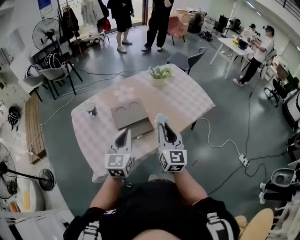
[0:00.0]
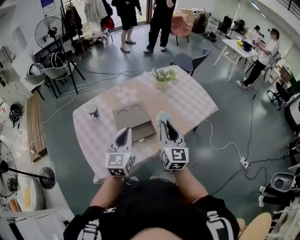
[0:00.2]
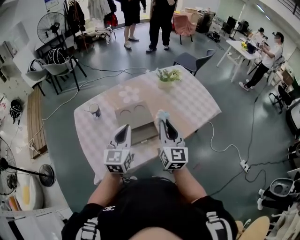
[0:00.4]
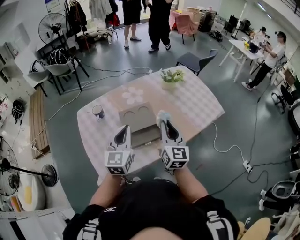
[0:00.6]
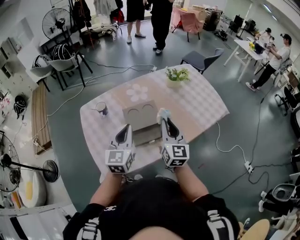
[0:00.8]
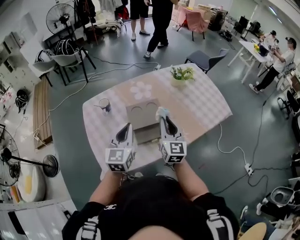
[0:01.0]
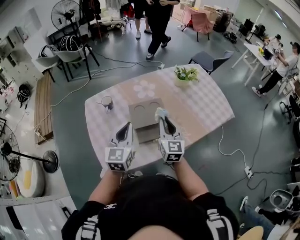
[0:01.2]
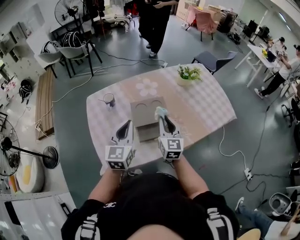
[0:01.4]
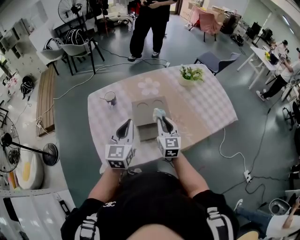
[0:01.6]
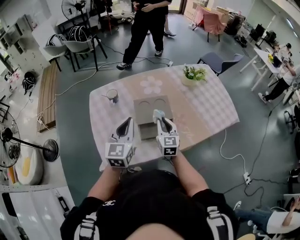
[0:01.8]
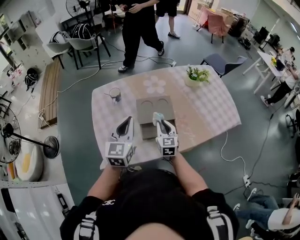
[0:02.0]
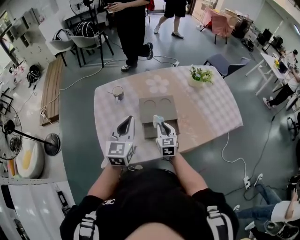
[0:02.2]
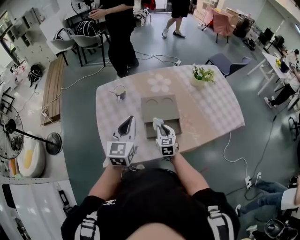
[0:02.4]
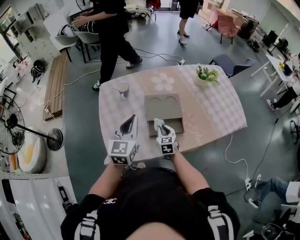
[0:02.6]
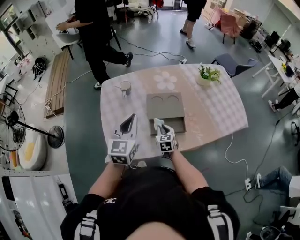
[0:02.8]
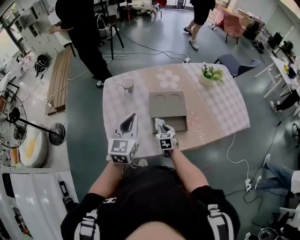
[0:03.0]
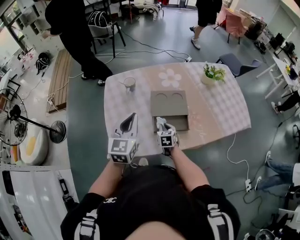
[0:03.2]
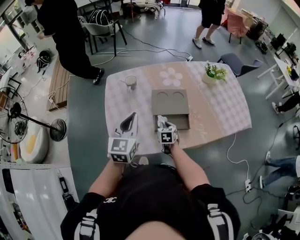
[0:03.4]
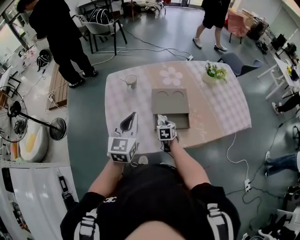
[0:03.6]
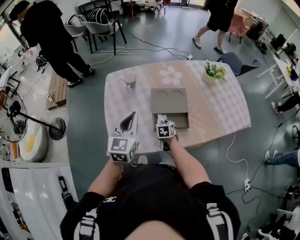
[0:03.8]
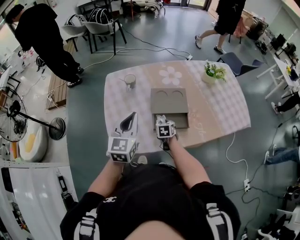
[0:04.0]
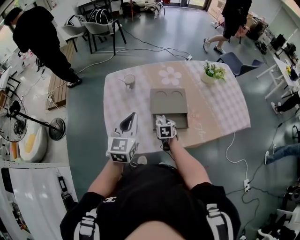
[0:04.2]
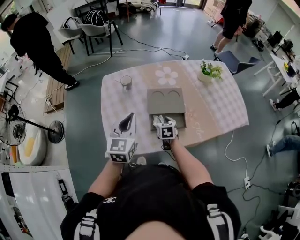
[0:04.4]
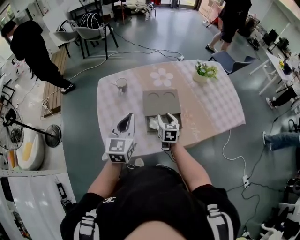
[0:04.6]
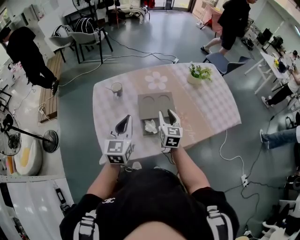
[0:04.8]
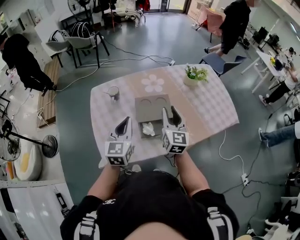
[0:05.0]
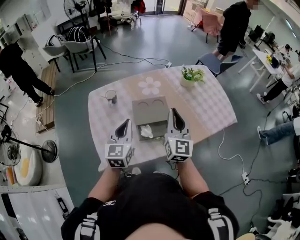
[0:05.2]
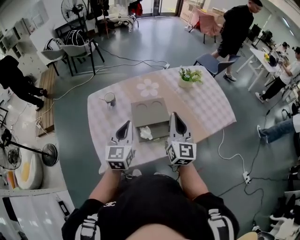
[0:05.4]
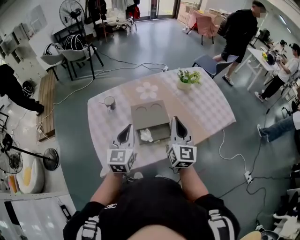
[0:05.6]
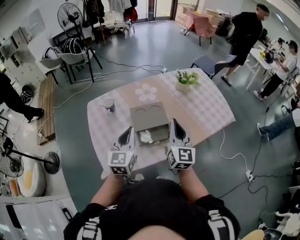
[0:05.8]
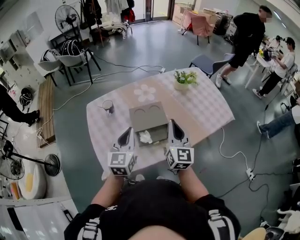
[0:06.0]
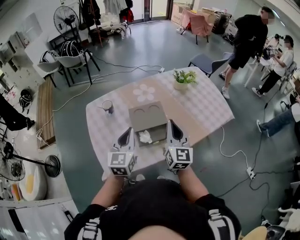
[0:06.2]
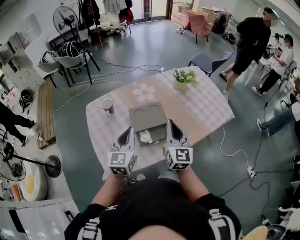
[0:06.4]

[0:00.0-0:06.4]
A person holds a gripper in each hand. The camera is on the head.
0:00.0 to 0:01.6: The left gripper travels to the left and forward by about 15 cm, while the right gripper heads forward, to the left and downward, covering about 20 cm.
0:01.6 to 0:03.2: The right gripper heads downward, covering roughly 20 cm, and angles its fingers downward, by roughly 30 degrees; the left gripper travels to the left by approximately 5 cm.
0:03.2 to 0:04.8: The right gripper goes approximately 20 cm upward, and rotates approximately 30 degrees.
0:04.8 to 0:06.4: The right gripper travels upward, backward and to the right by roughly 15 cm, rotates about 20 degrees, and closes its fingers; the left gripper shifts about 5 cm to the right.

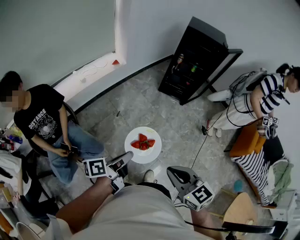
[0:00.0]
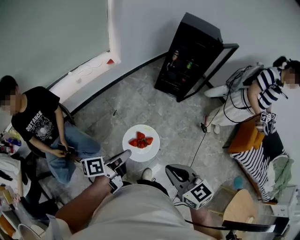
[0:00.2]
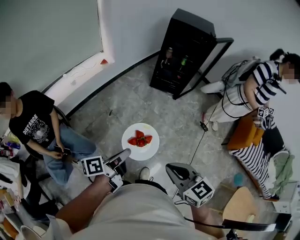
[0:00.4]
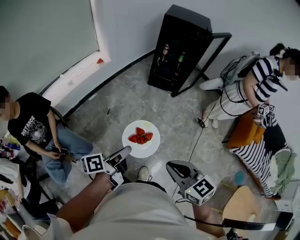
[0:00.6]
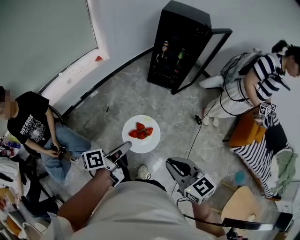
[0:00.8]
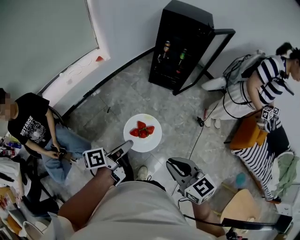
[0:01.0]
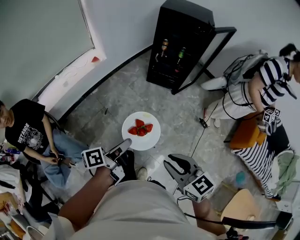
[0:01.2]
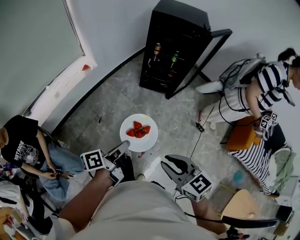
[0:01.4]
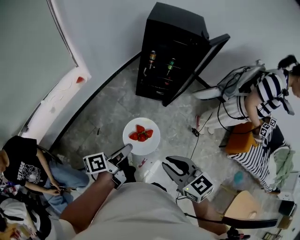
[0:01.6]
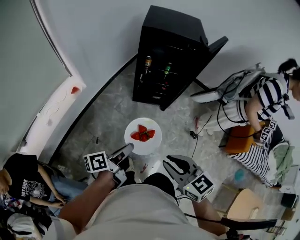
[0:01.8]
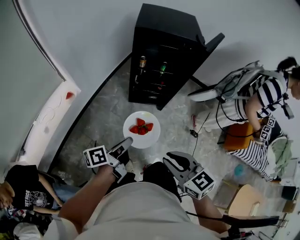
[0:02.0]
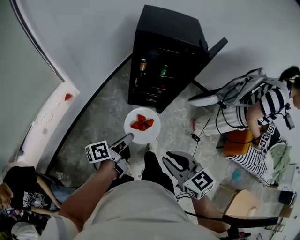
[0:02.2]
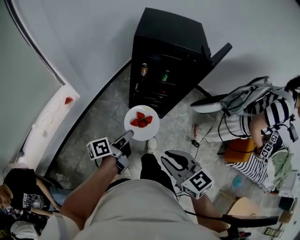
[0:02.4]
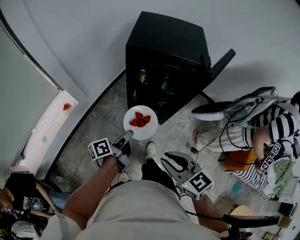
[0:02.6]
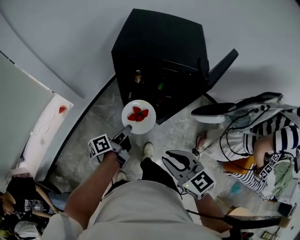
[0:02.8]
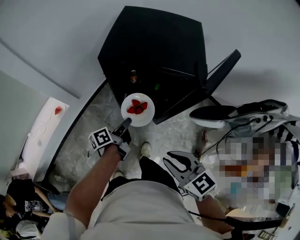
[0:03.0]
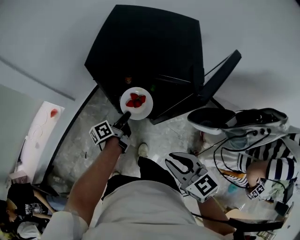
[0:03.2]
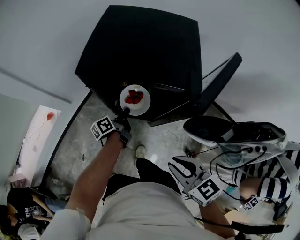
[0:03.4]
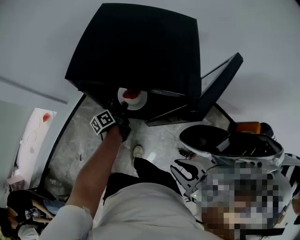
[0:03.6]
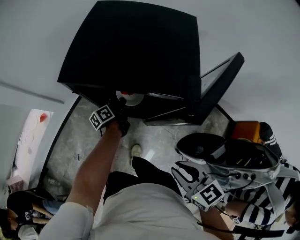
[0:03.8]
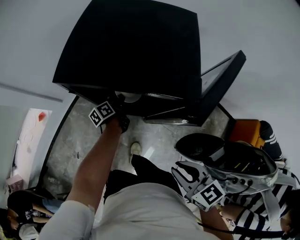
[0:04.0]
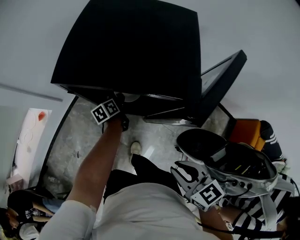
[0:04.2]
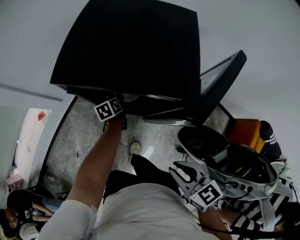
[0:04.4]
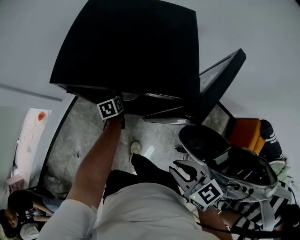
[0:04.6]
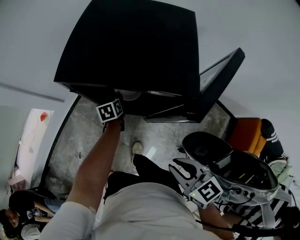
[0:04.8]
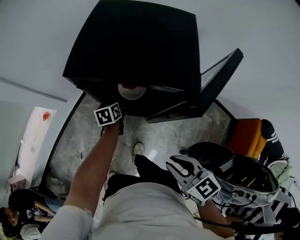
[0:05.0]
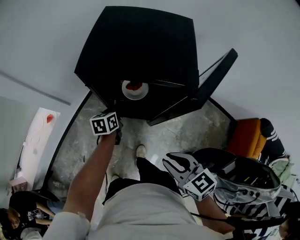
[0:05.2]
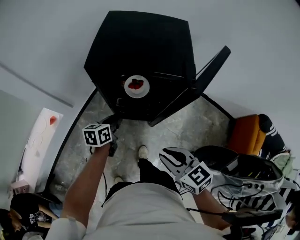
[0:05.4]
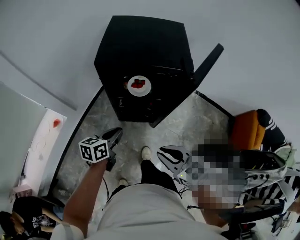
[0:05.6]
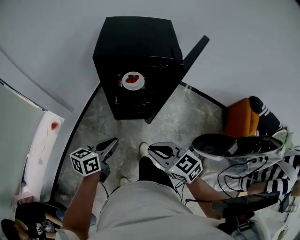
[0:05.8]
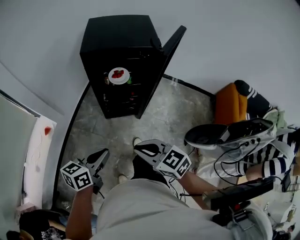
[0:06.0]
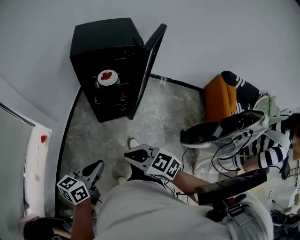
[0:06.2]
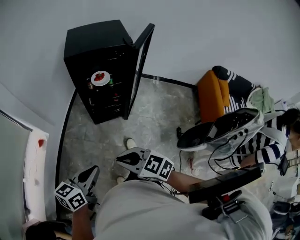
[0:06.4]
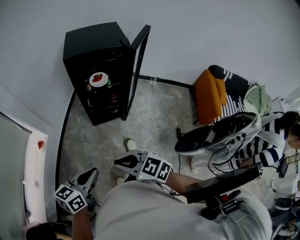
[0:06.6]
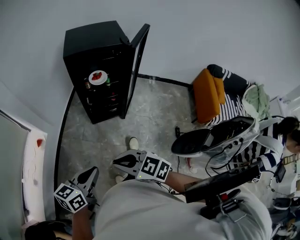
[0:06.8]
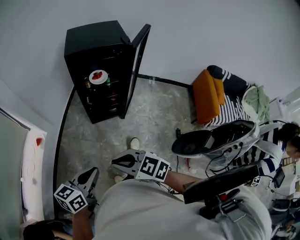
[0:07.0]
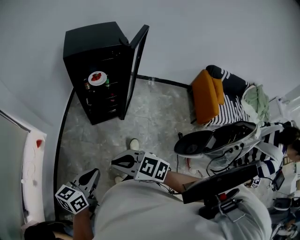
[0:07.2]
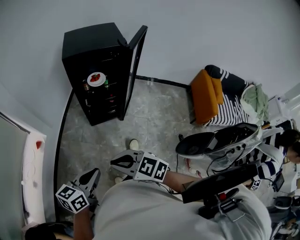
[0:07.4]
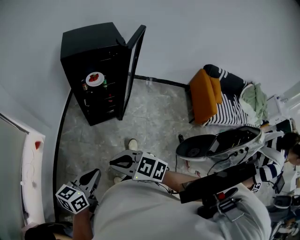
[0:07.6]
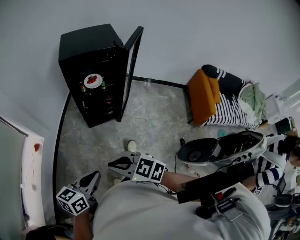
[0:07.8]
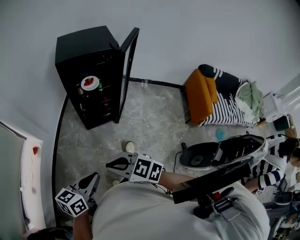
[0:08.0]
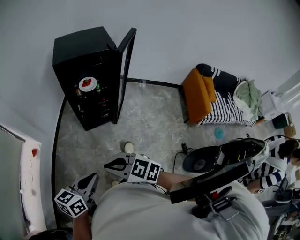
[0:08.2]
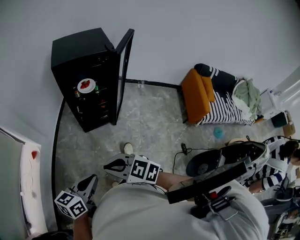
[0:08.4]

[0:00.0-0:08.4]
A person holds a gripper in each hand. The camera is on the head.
0:00.0 to 0:01.4: The two grippers go about 30 cm forward and to the right.
0:01.4 to 0:02.8: The pair of grippers is taken forward, roughly 50 cm.
0:02.8 to 0:04.2: The right gripper is displaced to the right and forward by some 35 cm. Meanwhile the left gripper shifts about 50 cm forward and to the right, and turns by some 30 degrees.
0:04.2 to 0:05.6: The left gripper changes place by some 15 cm, and turns by roughly 50 degrees. Meanwhile the right gripper moves about 30 cm.
0:05.6 to 0:07.0: The right gripper moves about 10 cm; the left gripper changes place by about 20 cm.
0:07.0 to 0:08.4: The right gripper changes place by about 5 cm.

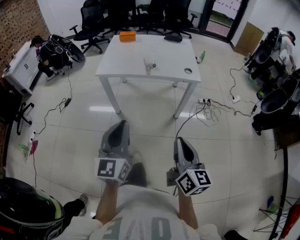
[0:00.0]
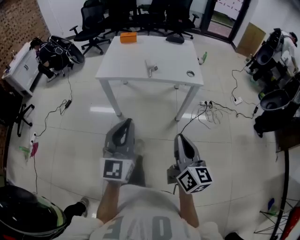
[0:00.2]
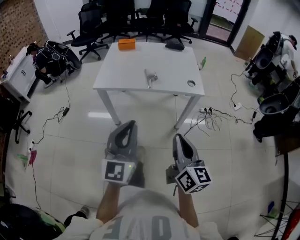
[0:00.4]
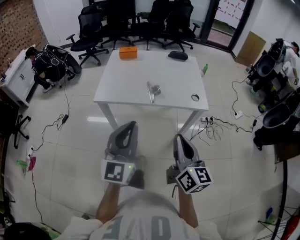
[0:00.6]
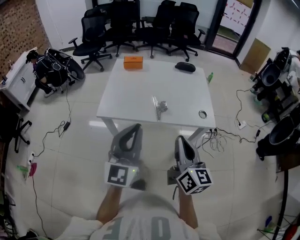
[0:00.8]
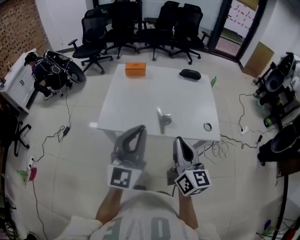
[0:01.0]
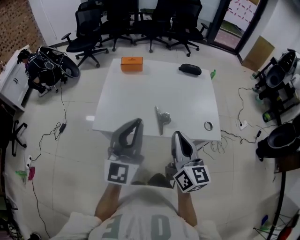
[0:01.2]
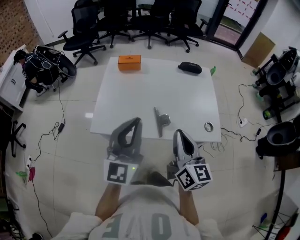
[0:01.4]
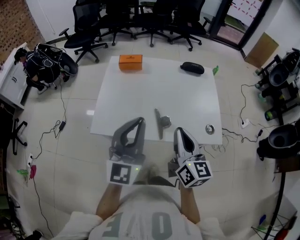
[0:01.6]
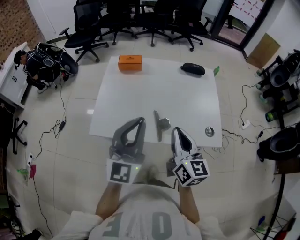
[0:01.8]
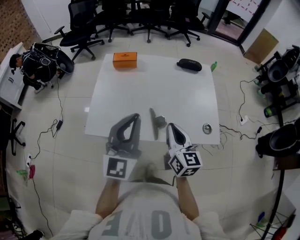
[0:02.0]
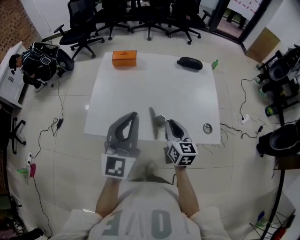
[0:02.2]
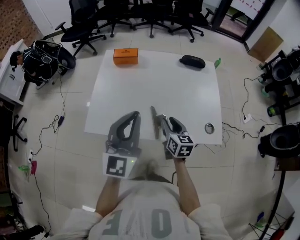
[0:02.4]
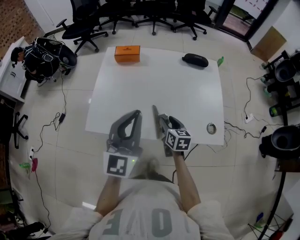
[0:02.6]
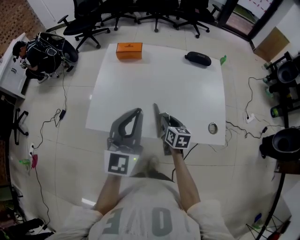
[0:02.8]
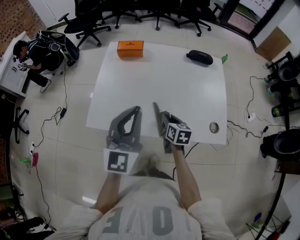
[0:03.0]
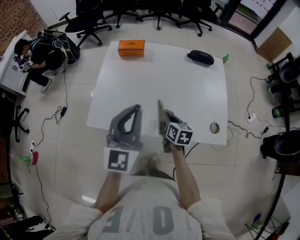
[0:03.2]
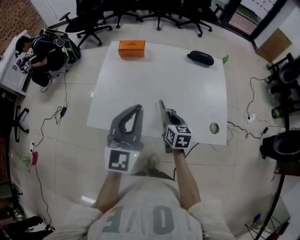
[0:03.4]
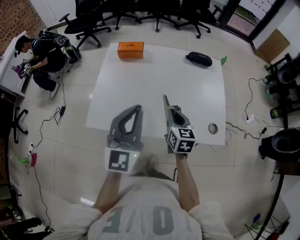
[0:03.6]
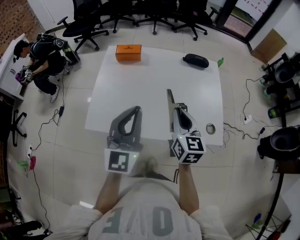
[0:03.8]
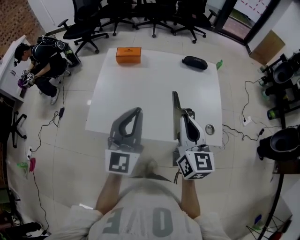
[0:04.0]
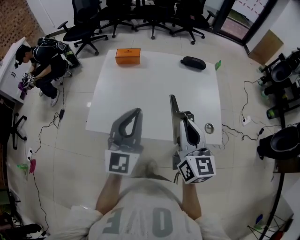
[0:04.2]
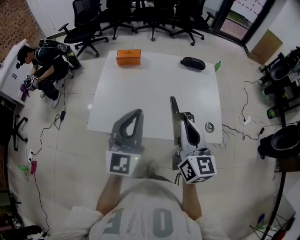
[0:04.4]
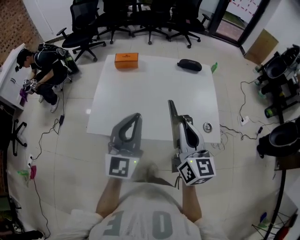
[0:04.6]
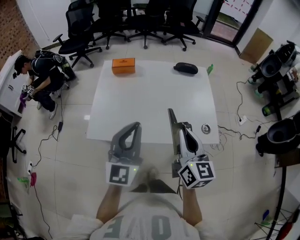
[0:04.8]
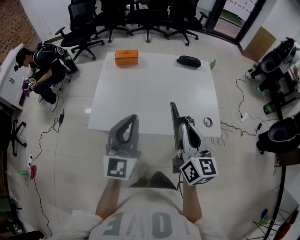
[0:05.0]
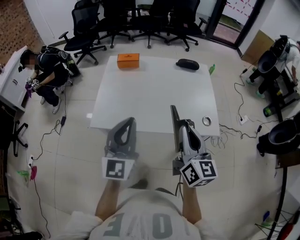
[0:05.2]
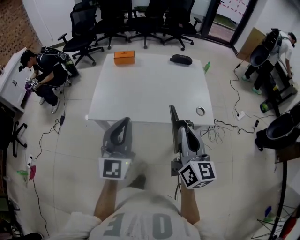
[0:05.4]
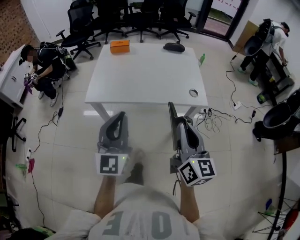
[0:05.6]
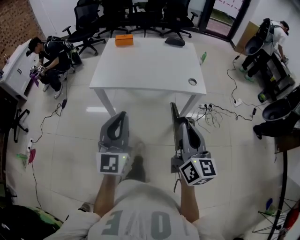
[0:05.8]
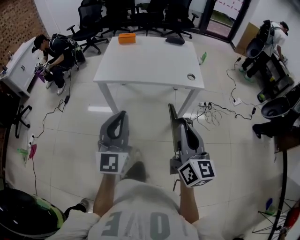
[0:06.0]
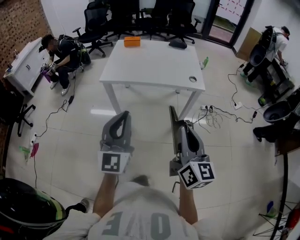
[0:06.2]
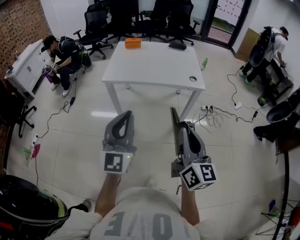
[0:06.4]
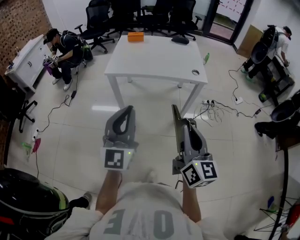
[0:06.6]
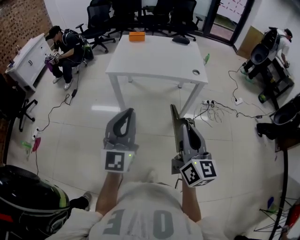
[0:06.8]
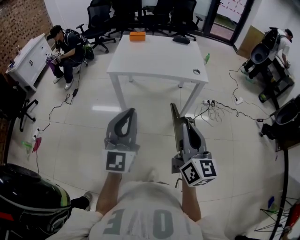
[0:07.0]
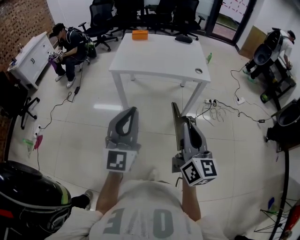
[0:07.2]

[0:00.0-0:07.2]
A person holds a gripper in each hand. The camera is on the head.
0:00.0 to 0:01.4: The pair of grippers is taken forward, about 40 cm.
0:01.4 to 0:02.8: The right gripper shifts roughly 30 cm downward and forward, points its fingers approximately 30 degrees further downward, and opens up, while the left gripper travels forward by roughly 5 cm.
0:02.8 to 0:04.4: The right gripper travels upward by roughly 25 cm, tilts its fingers some 30 degrees upward, and closes its fingers.
0:04.4 to 0:05.8: Both grippers move backward, some 35 cm.
0:05.8 to 0:07.2: Both grippers move backward, about 15 cm.

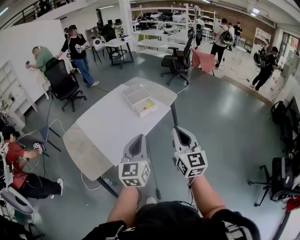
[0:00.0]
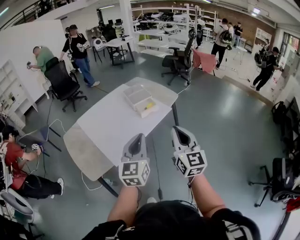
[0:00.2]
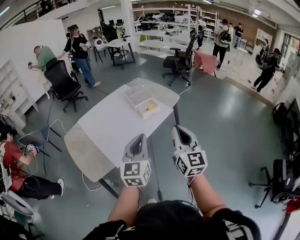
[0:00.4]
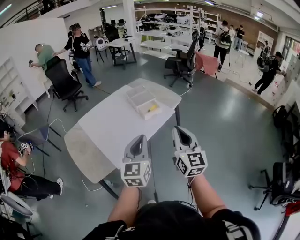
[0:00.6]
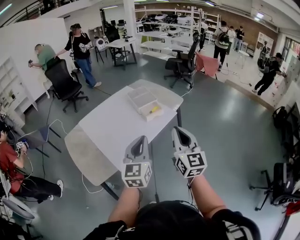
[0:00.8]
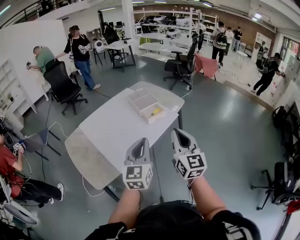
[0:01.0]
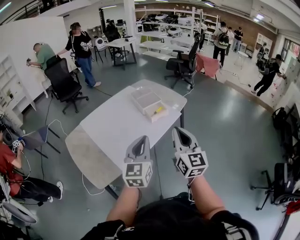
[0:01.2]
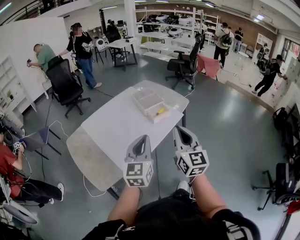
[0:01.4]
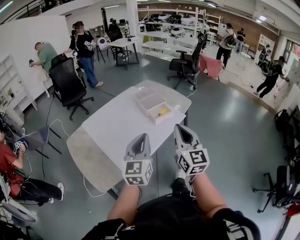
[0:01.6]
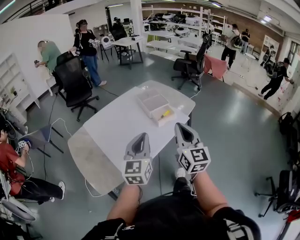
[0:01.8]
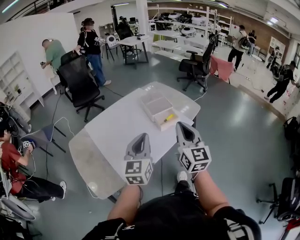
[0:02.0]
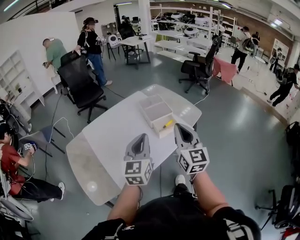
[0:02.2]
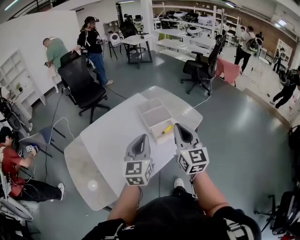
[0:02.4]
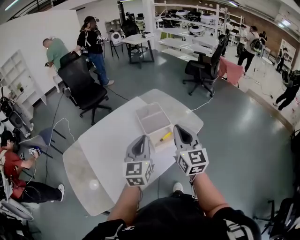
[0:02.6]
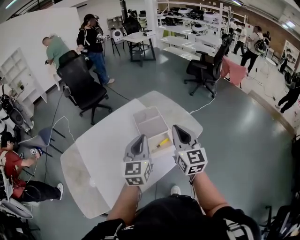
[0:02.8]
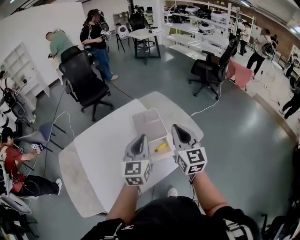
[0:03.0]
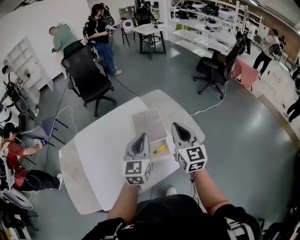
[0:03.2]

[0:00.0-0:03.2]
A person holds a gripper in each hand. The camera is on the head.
0:00.0 to 0:01.6: Both grippers travel together to the left and forward, roughly 15 cm.
0:01.6 to 0:03.2: Both grippers are carried forward, approximately 50 cm.
